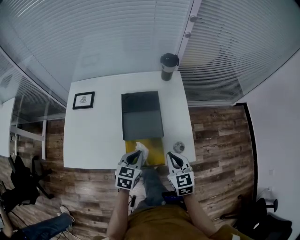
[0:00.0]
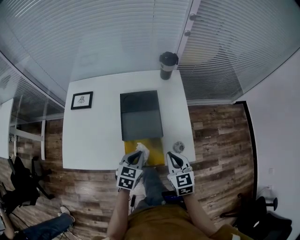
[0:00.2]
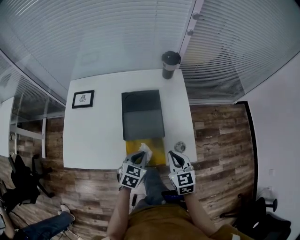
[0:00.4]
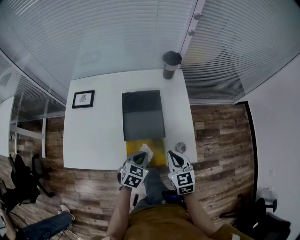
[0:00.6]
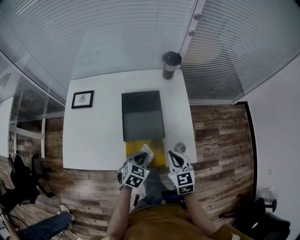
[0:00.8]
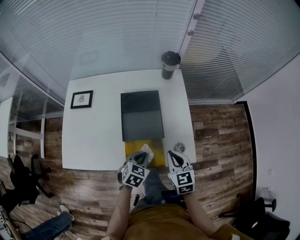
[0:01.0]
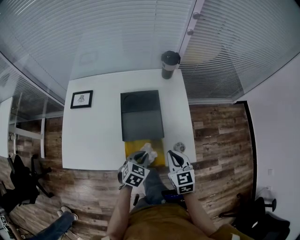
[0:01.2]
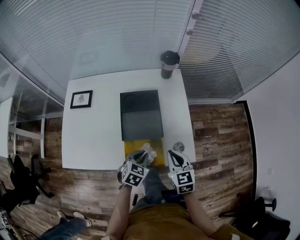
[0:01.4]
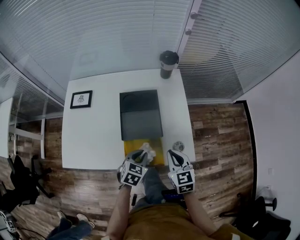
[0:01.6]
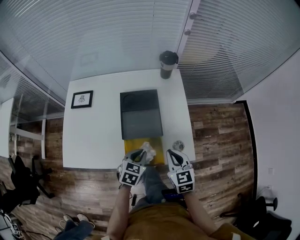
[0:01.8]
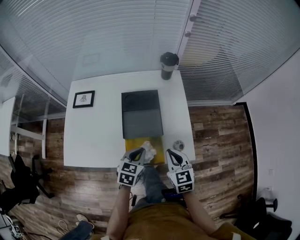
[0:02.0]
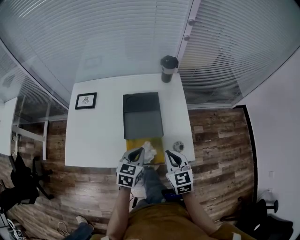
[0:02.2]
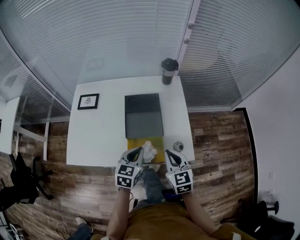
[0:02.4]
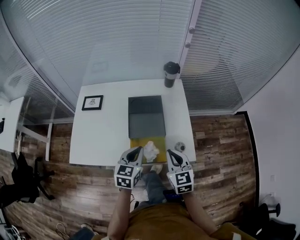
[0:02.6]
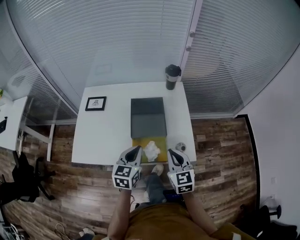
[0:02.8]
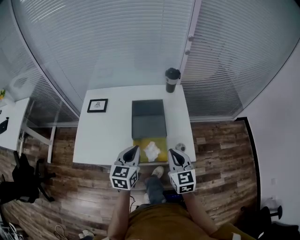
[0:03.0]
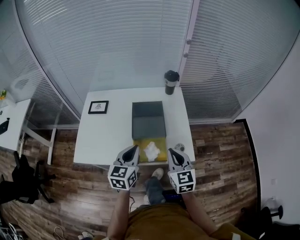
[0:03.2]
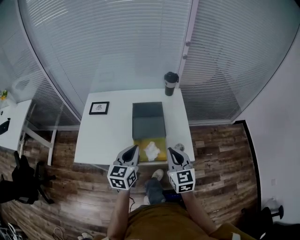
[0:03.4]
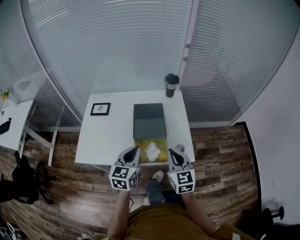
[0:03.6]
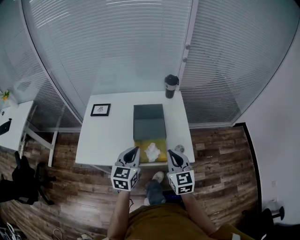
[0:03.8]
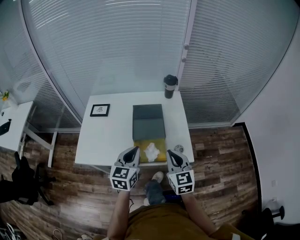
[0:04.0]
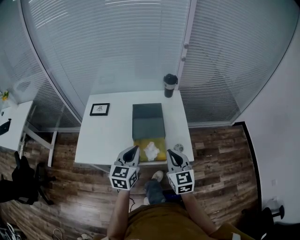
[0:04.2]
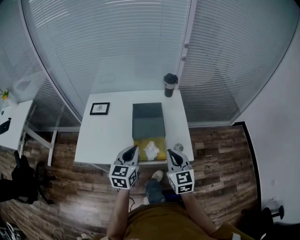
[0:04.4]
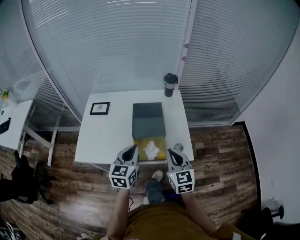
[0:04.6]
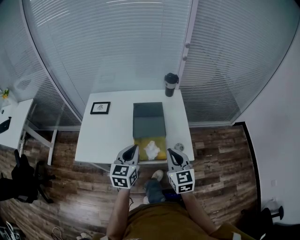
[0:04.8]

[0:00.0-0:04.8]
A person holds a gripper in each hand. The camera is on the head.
0:00.0 to 0:01.6: The grippers make only small movements.
0:01.6 to 0:03.2: The right gripper travels upward and backward by some 10 cm; the left gripper is displaced upward by some 20 cm, and points its fingers some 30 degrees further upward.
0:03.2 to 0:04.8: There are only small adjustments of the grippers.

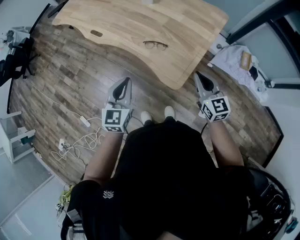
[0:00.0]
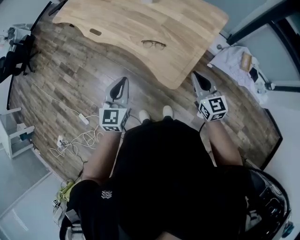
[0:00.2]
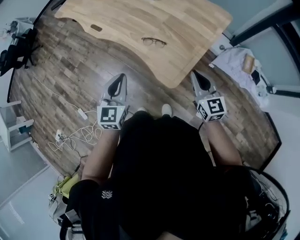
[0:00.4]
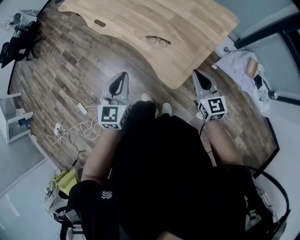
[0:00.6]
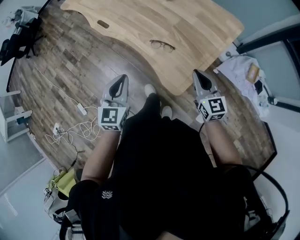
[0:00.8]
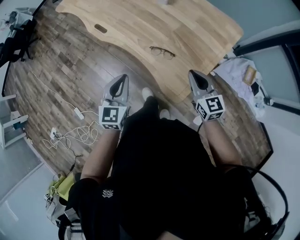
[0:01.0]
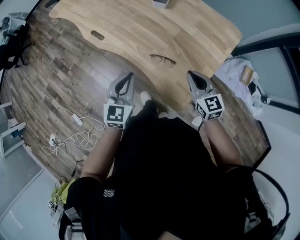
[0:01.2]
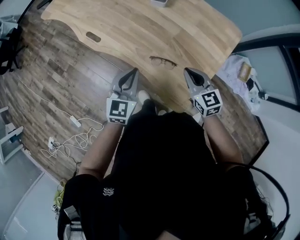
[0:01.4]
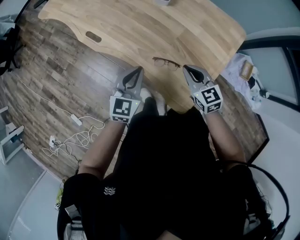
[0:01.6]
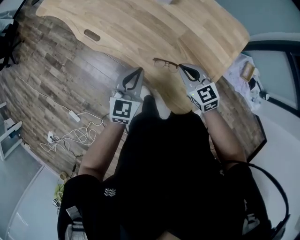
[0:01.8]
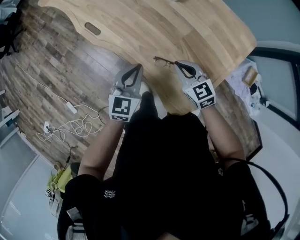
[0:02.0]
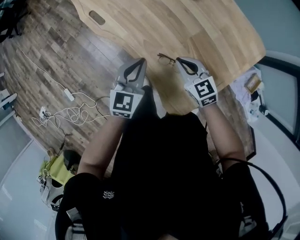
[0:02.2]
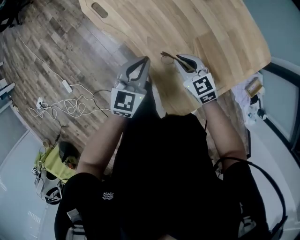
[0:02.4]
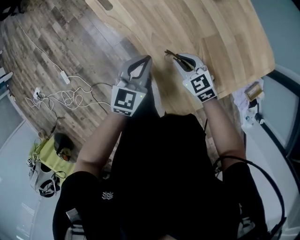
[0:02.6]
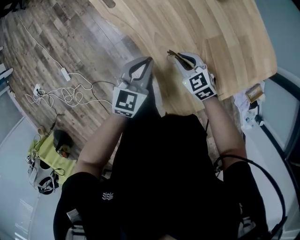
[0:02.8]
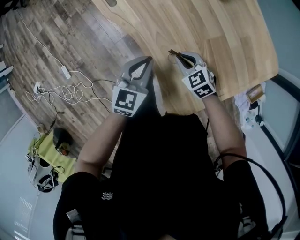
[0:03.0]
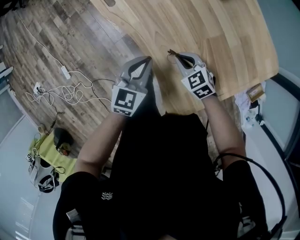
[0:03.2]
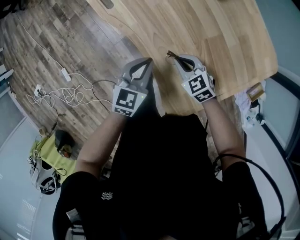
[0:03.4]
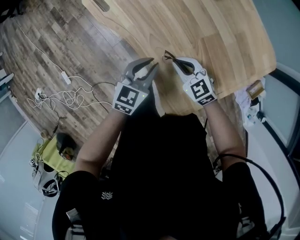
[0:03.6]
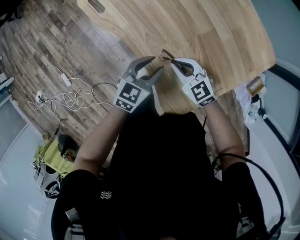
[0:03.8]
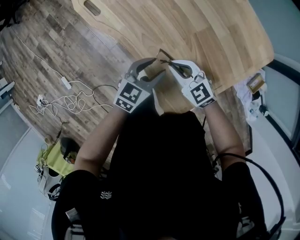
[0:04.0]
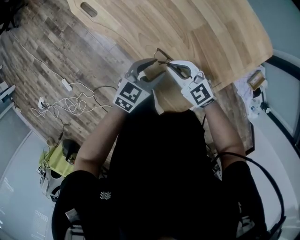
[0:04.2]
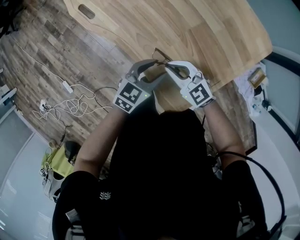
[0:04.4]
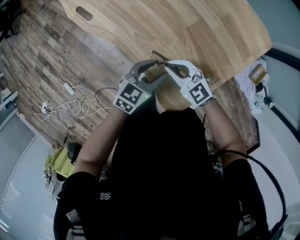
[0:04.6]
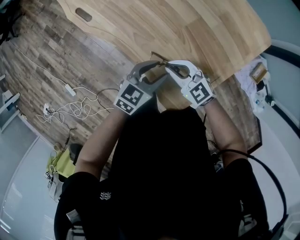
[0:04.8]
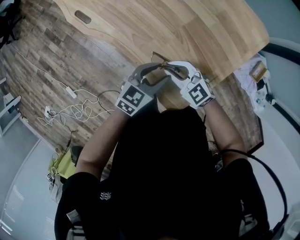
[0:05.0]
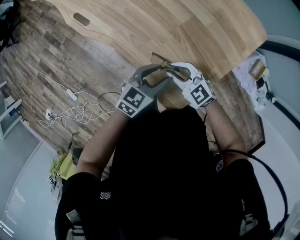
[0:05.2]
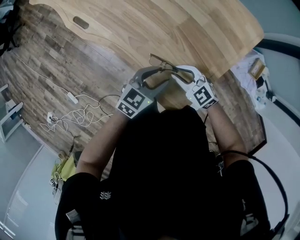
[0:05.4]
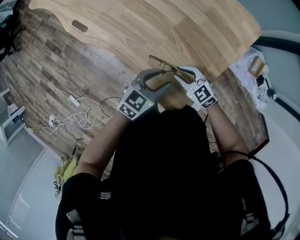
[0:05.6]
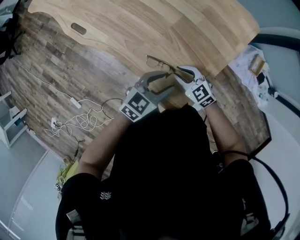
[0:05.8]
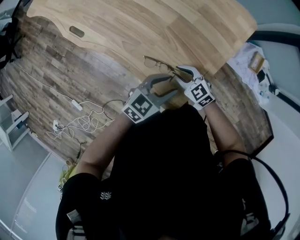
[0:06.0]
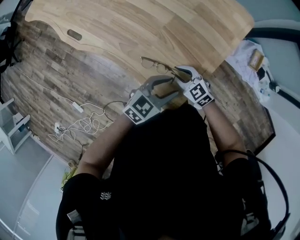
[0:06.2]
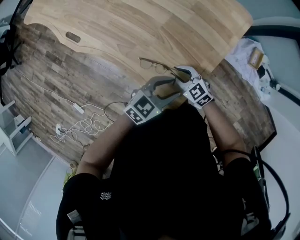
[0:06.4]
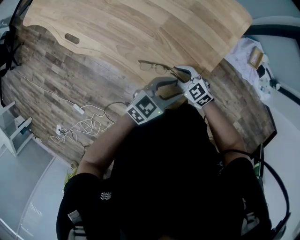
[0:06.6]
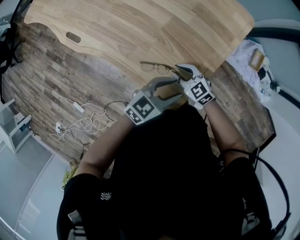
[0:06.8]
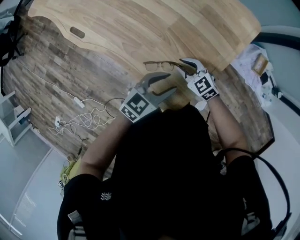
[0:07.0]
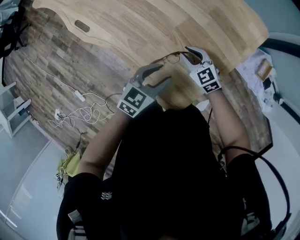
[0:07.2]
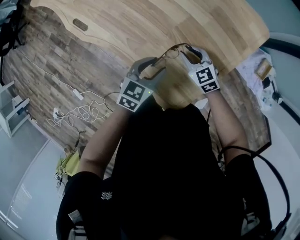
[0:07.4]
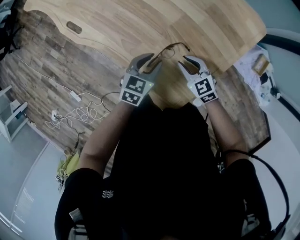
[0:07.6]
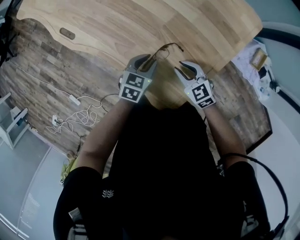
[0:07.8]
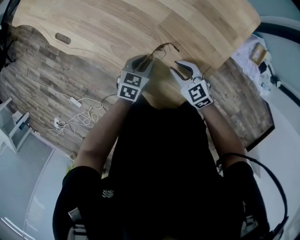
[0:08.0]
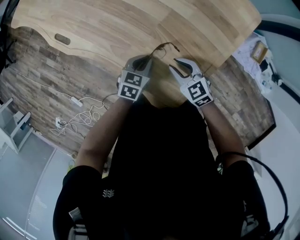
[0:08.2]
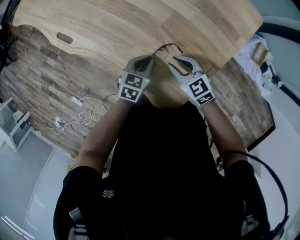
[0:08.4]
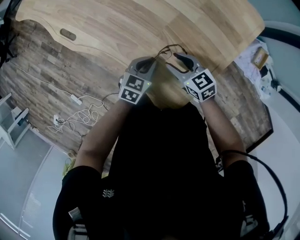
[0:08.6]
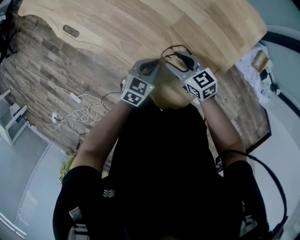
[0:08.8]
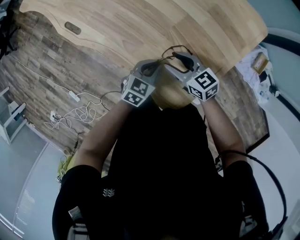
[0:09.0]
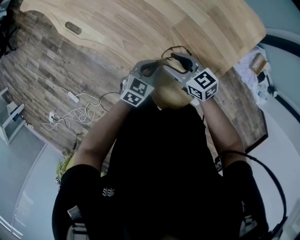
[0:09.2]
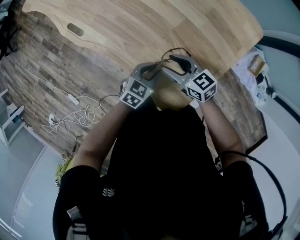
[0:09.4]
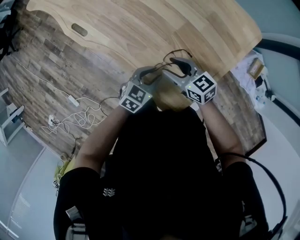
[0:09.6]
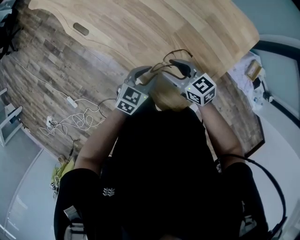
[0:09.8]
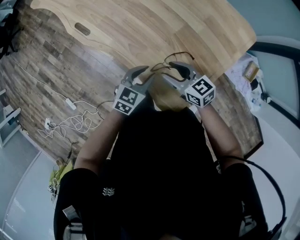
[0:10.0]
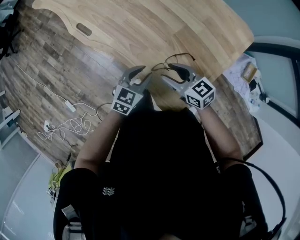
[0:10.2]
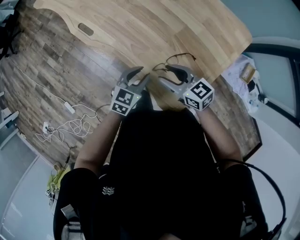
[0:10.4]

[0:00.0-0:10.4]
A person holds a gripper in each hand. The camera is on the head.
0:00.0 to 0:01.4: Both grippers move forward, about 20 cm.
0:01.4 to 0:03.0: The right gripper is displaced downward, forward and to the left by some 25 cm, and swivels some 50 degrees; the left gripper travels downward and forward by approximately 15 cm.
0:03.0 to 0:04.4: The left gripper moves to the right and backward, roughly 10 cm, changes its angle by some 30 degrees, and opens up, while the right gripper heads upward and backward, covering approximately 10 cm, and swivels some 20 degrees.
0:04.4 to 0:06.0: The left gripper moves to the right and backward, about 15 cm, and turns by about 20 degrees. Meanwhile the right gripper goes about 10 cm to the right, downward and backward.
0:06.0 to 0:07.4: The left gripper ends up approximately 10 cm from where it was, and turns by some 20 degrees. Meanwhile the right gripper shifts by roughly 10 cm.
0:07.4 to 0:09.0: The left gripper goes roughly 5 cm downward, and closes its fingers. Meanwhile the right gripper heads to the left, covering roughly 5 cm, swivels some 30 degrees, and opens up.
0:09.0 to 0:10.4: The right gripper is displaced upward, to the left and backward by roughly 10 cm. The left gripper goes roughly 10 cm to the left and upward, and opens up.

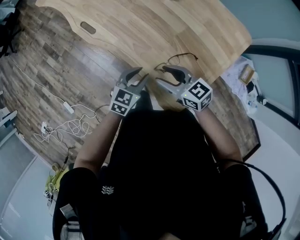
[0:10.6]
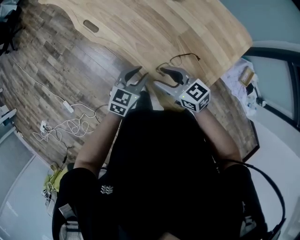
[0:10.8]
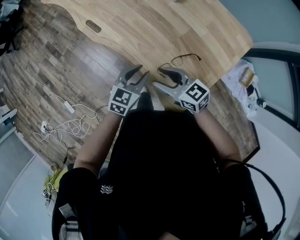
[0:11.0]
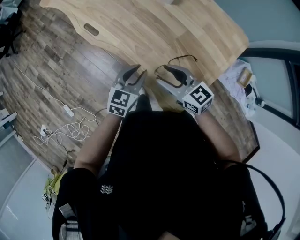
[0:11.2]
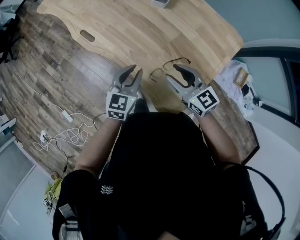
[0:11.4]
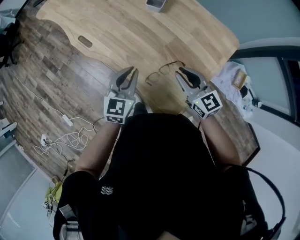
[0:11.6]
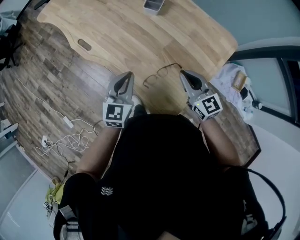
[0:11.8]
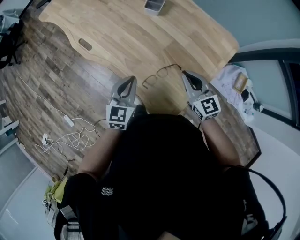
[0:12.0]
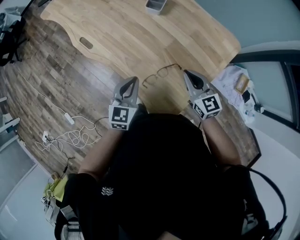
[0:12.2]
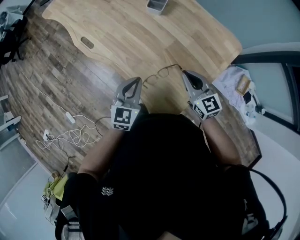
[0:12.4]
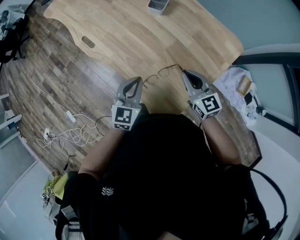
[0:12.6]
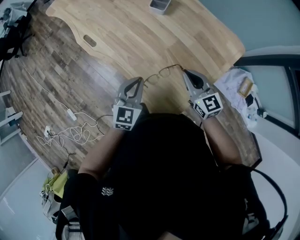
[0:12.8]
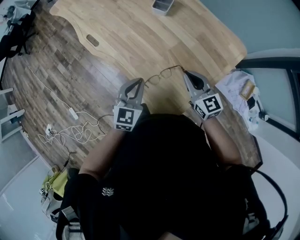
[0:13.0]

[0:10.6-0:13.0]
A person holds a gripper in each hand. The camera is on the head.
0:10.6 to 0:11.8: The left gripper shifts approximately 10 cm upward, turns by about 20 degrees, and closes up; the right gripper heads to the right and upward, covering approximately 15 cm, rotates approximately 30 degrees, and closes.
0:11.8 to 0:13.0: The left gripper moves roughly 5 cm.

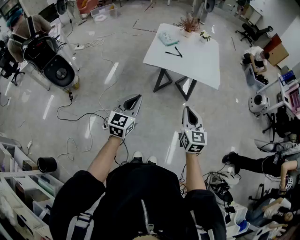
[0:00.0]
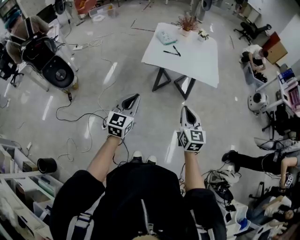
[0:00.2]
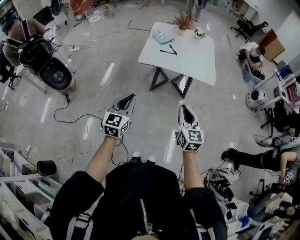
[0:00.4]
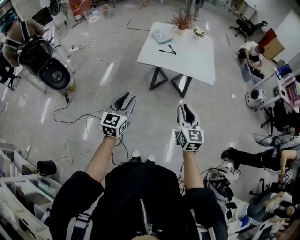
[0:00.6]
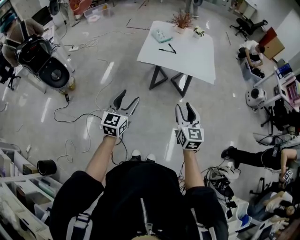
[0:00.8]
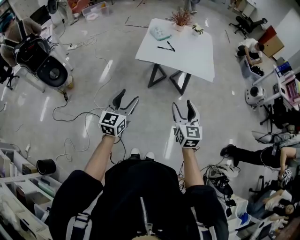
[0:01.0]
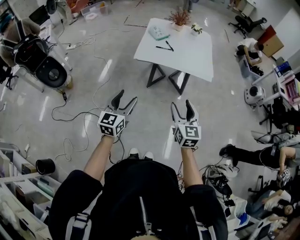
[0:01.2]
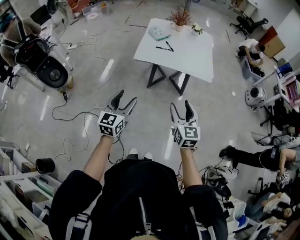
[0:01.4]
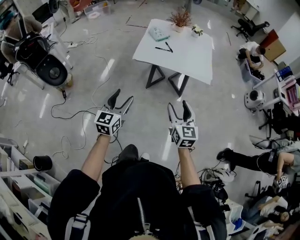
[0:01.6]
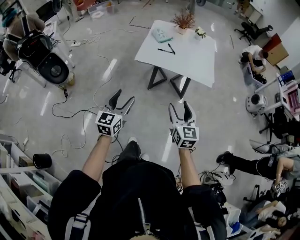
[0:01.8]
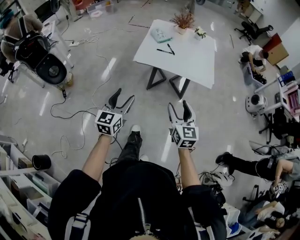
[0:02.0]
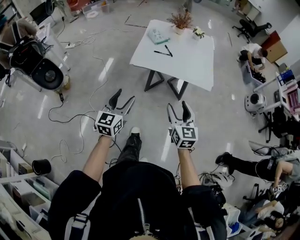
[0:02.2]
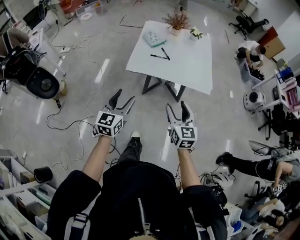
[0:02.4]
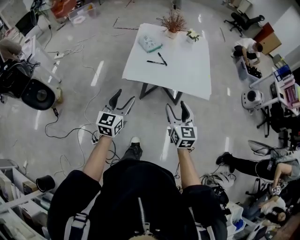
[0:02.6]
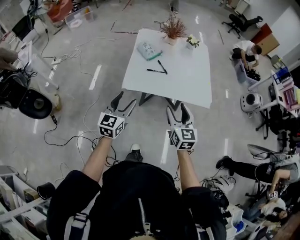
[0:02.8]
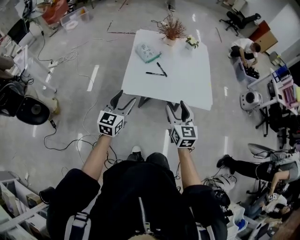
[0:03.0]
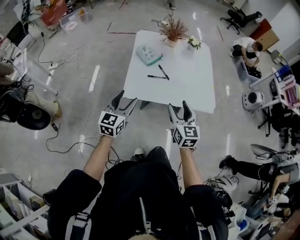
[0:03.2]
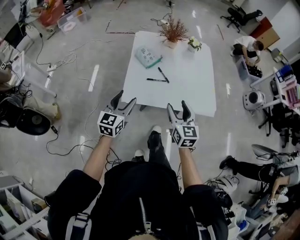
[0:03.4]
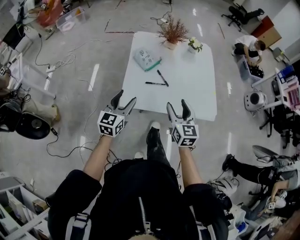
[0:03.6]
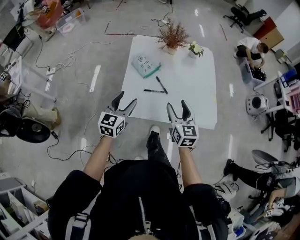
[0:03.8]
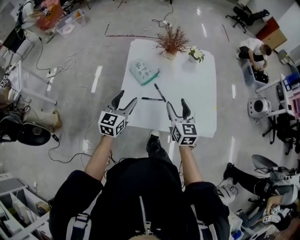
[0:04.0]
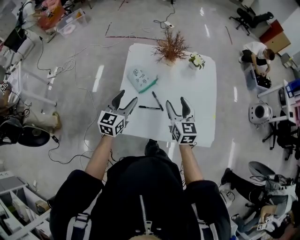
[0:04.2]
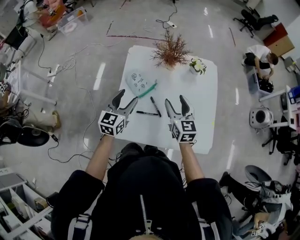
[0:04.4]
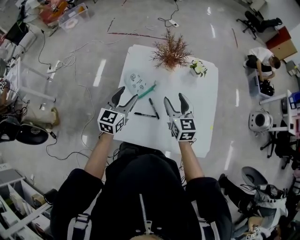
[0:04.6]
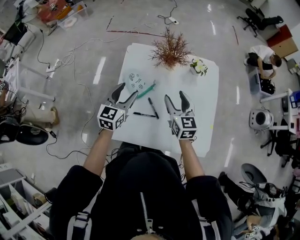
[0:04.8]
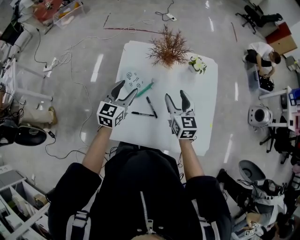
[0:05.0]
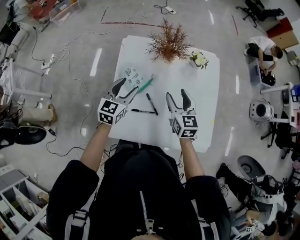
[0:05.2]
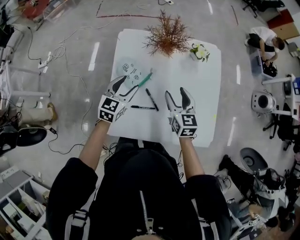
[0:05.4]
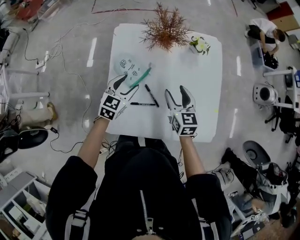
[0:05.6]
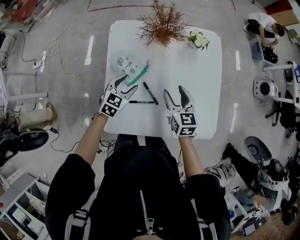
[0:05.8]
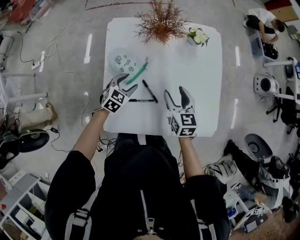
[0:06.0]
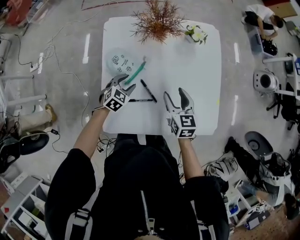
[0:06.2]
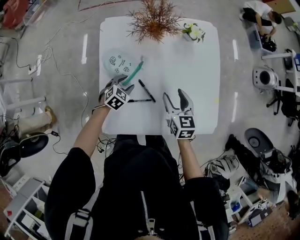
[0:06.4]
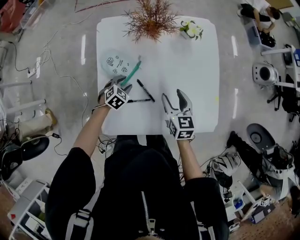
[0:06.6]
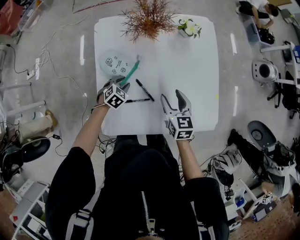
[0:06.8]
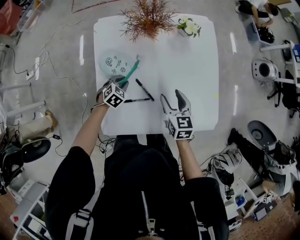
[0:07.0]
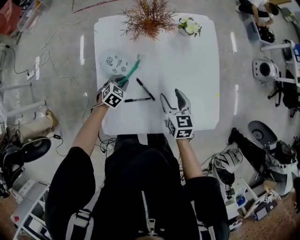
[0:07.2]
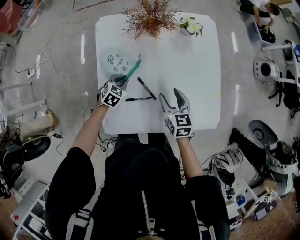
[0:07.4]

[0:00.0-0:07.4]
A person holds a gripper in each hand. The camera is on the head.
0:00.0 to 0:01.4: The right gripper opens up, while the left gripper opens.
0:01.4 to 0:03.0: The grippers both shift forward by approximately 30 cm.
0:03.0 to 0:04.4: Both grippers travel together forward, roughly 35 cm.
0:04.4 to 0:06.0: The left gripper moves downward, approximately 20 cm, and changes its angle by roughly 40 degrees. The right gripper moves downward, some 10 cm.
0:06.0 to 0:07.4: The left gripper moves downward, roughly 5 cm, and closes up; the right gripper changes place by about 5 cm.
